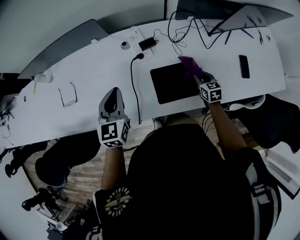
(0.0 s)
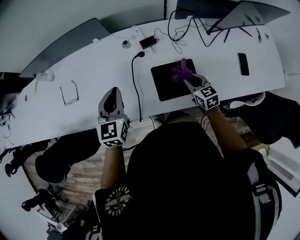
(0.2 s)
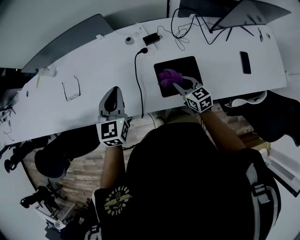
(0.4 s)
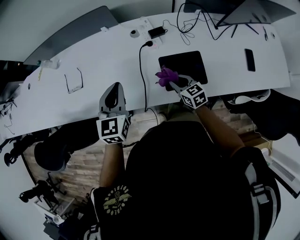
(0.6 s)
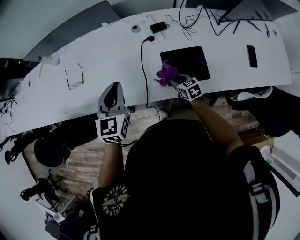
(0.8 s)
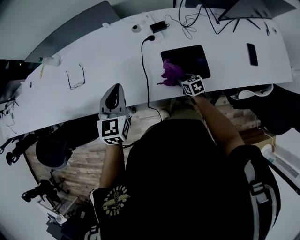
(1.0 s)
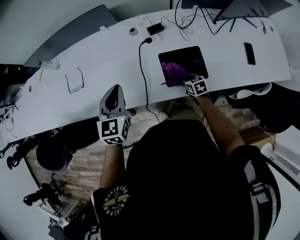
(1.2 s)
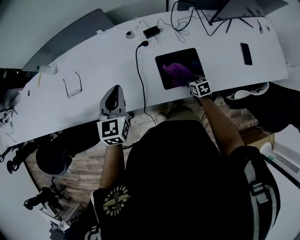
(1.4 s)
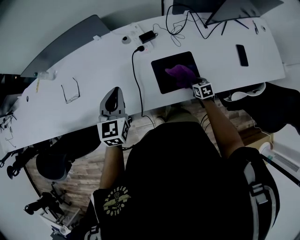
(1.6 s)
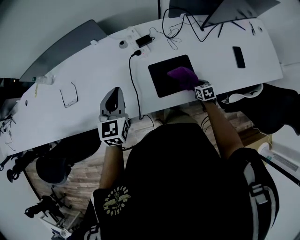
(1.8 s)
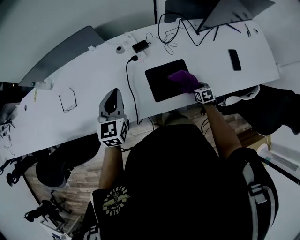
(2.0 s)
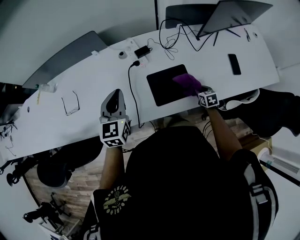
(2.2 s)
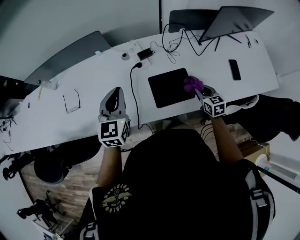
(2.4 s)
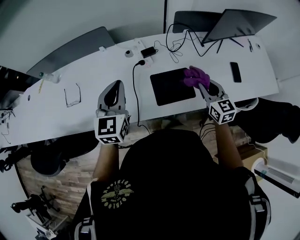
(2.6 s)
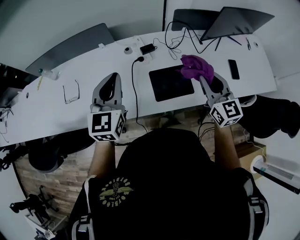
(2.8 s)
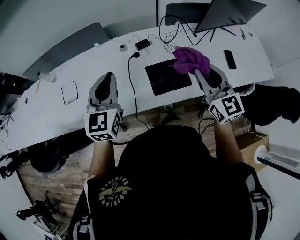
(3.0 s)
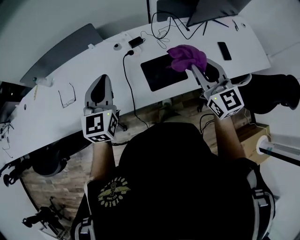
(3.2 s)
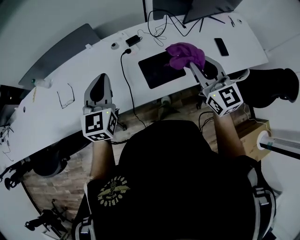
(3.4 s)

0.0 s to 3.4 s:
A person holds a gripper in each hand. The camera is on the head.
0.0 to 1.6 s: The left gripper shifts roughly 5 cm backward, while the right gripper shifts roughly 10 cm downward and backward, and travels to the left and back again, about 20 cm each way.
1.6 to 3.4 s: The right gripper moves upward, some 40 cm, and tilts its fingers some 50 degrees upward. Meanwhile the left gripper shifts some 10 cm upward.

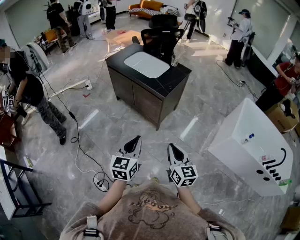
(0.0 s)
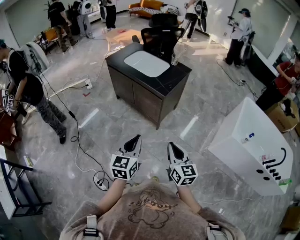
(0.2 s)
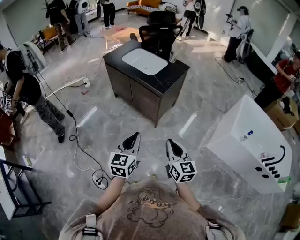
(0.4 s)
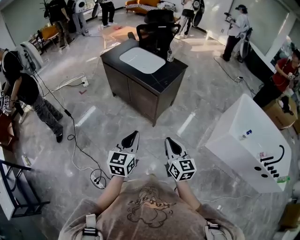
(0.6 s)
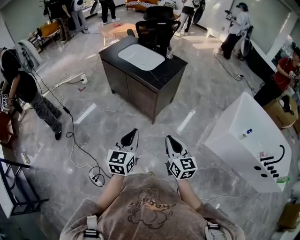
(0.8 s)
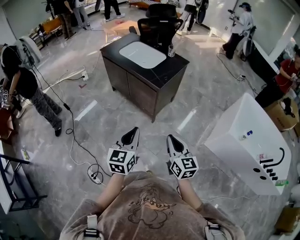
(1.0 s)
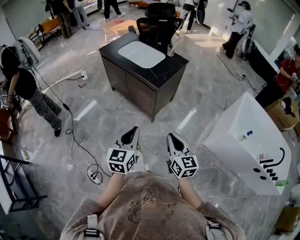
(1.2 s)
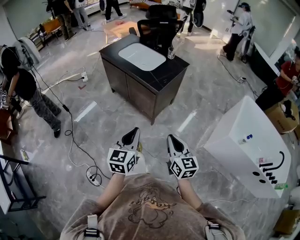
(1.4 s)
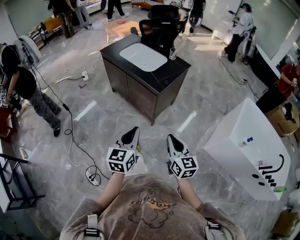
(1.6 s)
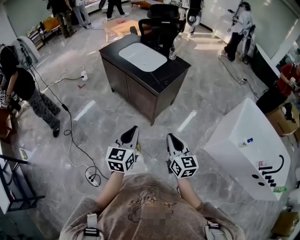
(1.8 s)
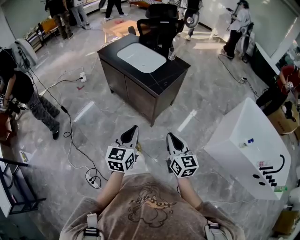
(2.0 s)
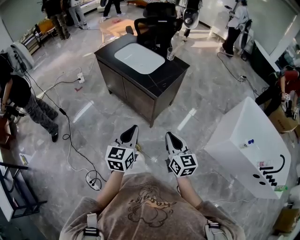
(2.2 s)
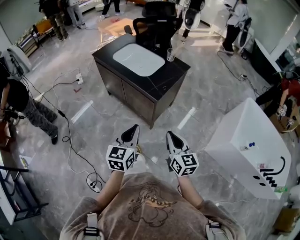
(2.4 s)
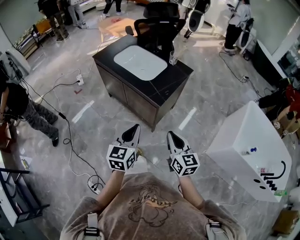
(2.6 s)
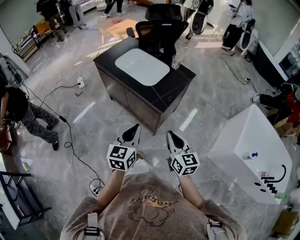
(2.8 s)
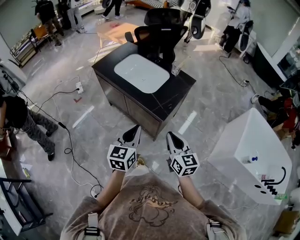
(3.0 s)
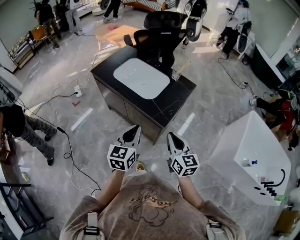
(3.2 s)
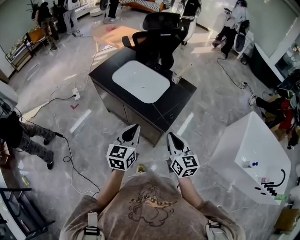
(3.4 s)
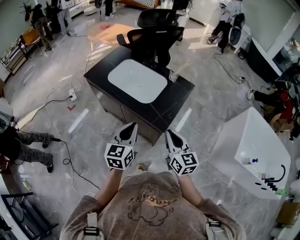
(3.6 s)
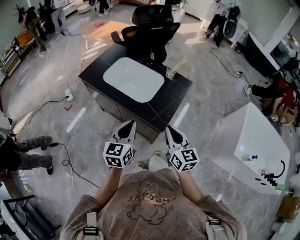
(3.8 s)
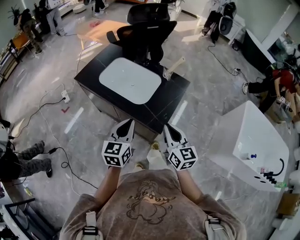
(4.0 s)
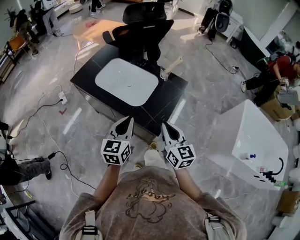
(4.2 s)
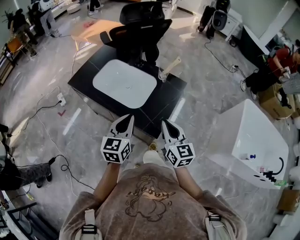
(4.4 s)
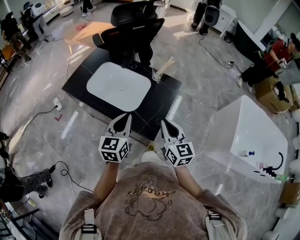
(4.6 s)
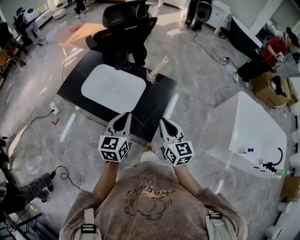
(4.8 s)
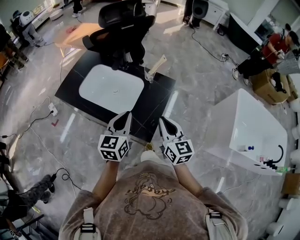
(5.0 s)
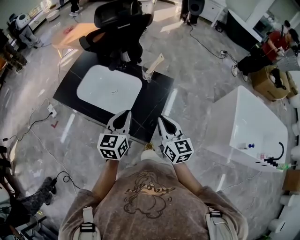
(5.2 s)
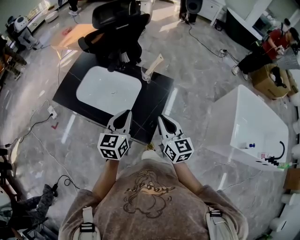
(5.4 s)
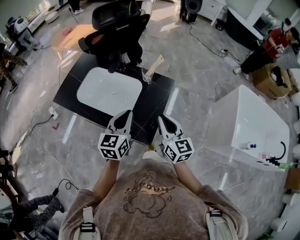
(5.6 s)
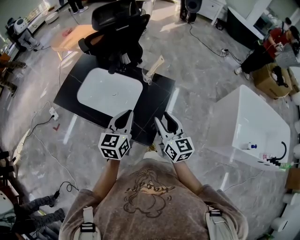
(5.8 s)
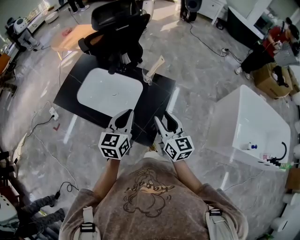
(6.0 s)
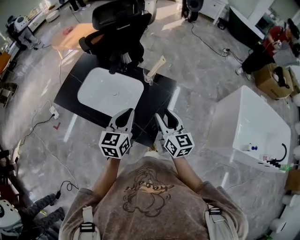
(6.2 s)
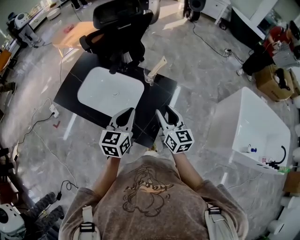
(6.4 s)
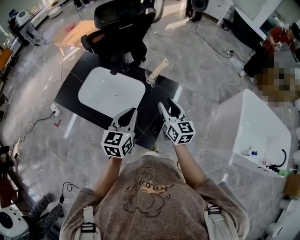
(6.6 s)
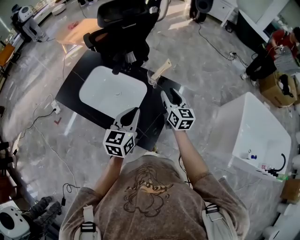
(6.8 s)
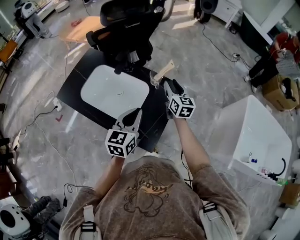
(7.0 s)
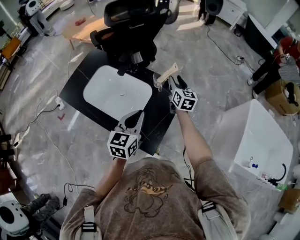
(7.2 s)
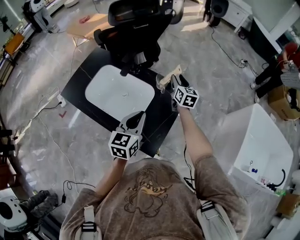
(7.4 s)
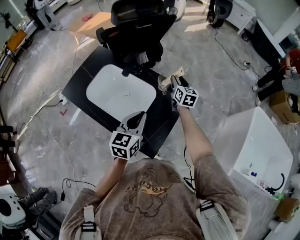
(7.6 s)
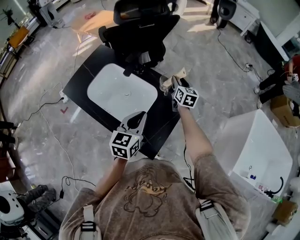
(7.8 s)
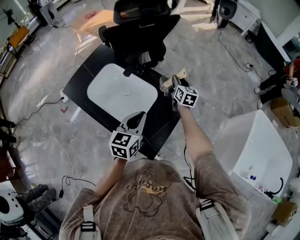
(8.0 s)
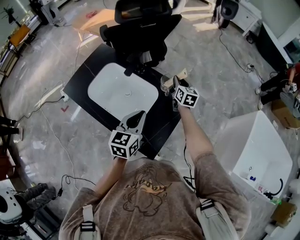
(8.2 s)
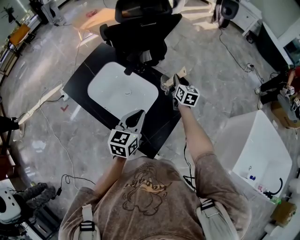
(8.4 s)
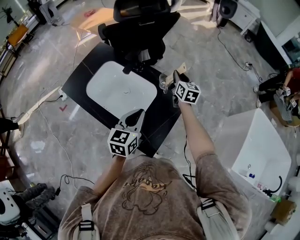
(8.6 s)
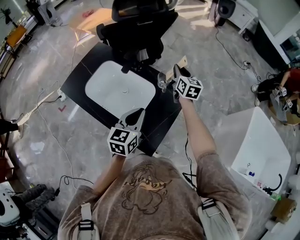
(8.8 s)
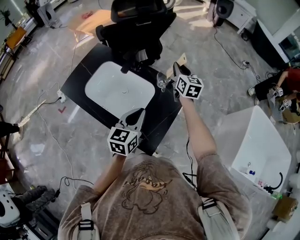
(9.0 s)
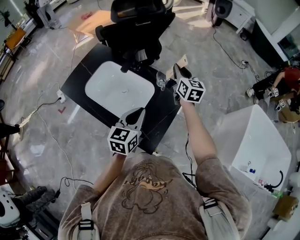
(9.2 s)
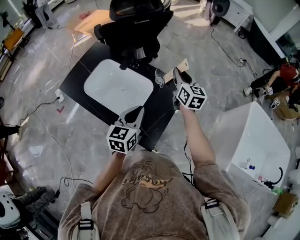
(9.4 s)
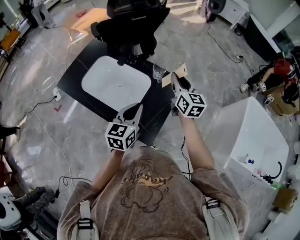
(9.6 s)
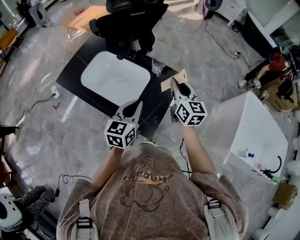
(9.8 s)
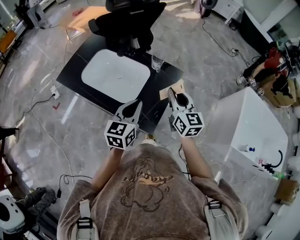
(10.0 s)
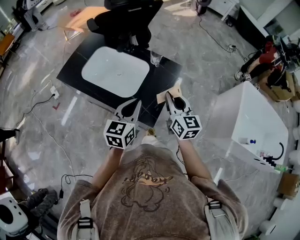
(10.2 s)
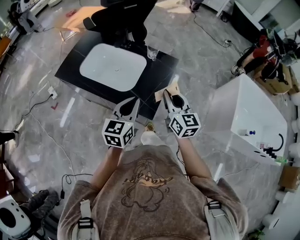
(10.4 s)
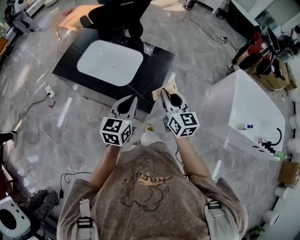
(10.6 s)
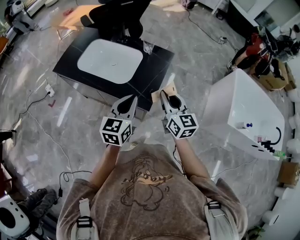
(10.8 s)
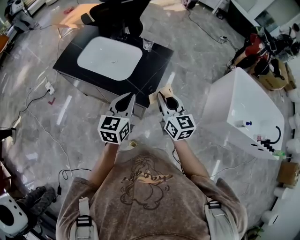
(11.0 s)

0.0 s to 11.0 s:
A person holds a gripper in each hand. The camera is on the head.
0.0 to 1.6 s: The right gripper shifts about 10 cm forward and to the right. The left gripper travels forward by roughly 5 cm.
1.6 to 3.2 s: Both grippers travel together forward, approximately 30 cm.
3.2 to 4.8 s: The two grippers go about 20 cm forward.
4.8 to 6.2 s: Both grippers move forward, approximately 5 cm. The right gripper opens up.
6.2 to 7.8 s: The right gripper moves forward, approximately 30 cm; the left gripper shifts some 5 cm forward.
7.8 to 9.4 s: The right gripper is displaced upward and backward by about 15 cm, and closes its fingers.
9.4 to 11.0 s: The right gripper is displaced backward by roughly 35 cm. Meanwhile the left gripper travels backward by about 20 cm.

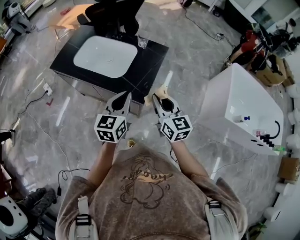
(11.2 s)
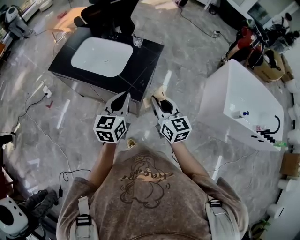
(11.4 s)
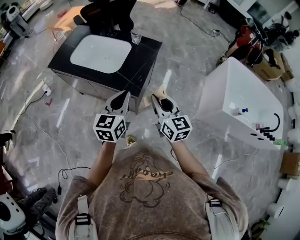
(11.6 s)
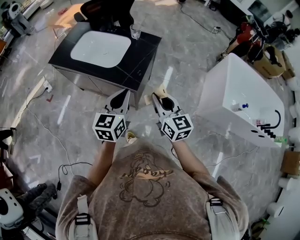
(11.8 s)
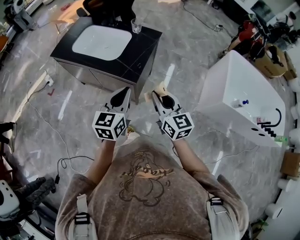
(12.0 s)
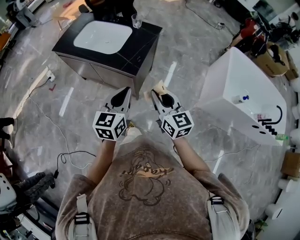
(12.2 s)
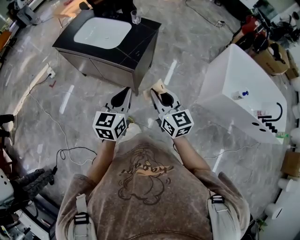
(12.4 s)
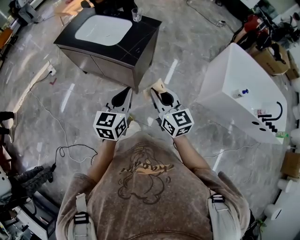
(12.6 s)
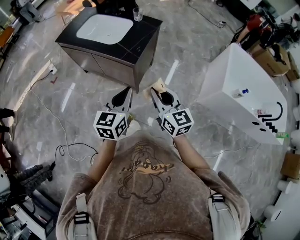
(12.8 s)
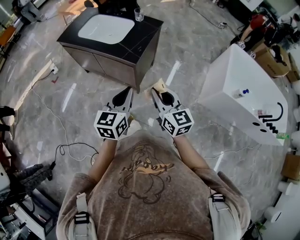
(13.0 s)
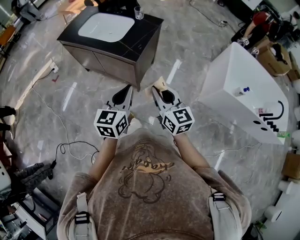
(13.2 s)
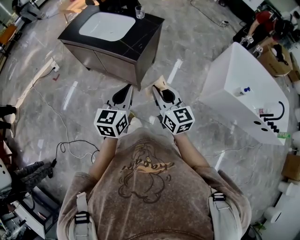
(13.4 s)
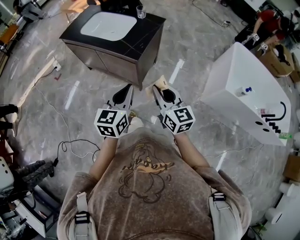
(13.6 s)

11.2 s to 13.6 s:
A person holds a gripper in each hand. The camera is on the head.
11.2 to 12.4 s: The grippers both shift backward by roughly 20 cm.
12.4 to 13.6 s: There are only small adjustments of the grippers.

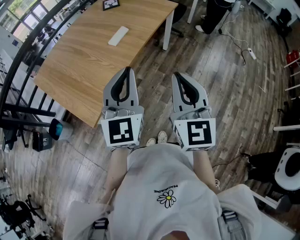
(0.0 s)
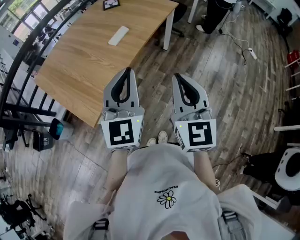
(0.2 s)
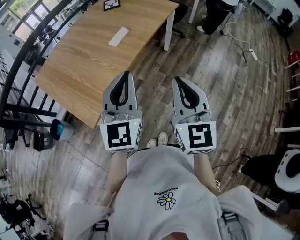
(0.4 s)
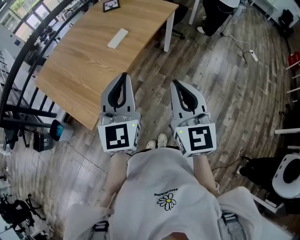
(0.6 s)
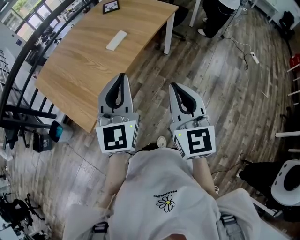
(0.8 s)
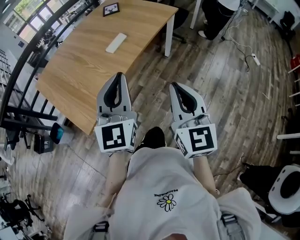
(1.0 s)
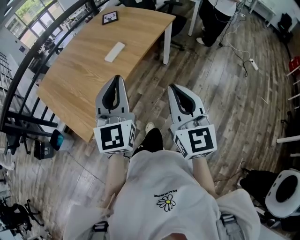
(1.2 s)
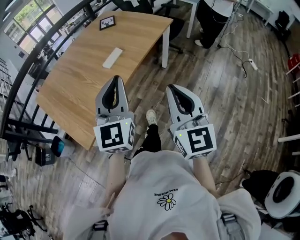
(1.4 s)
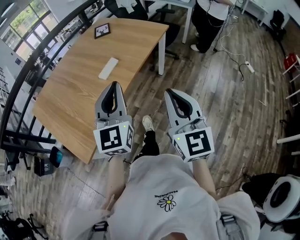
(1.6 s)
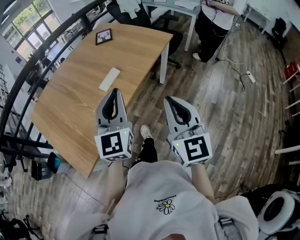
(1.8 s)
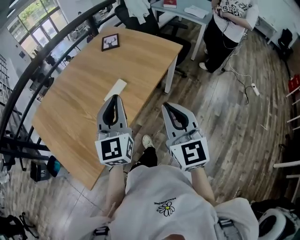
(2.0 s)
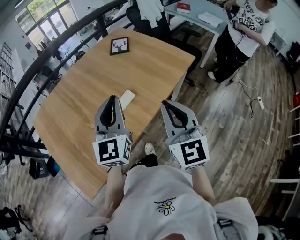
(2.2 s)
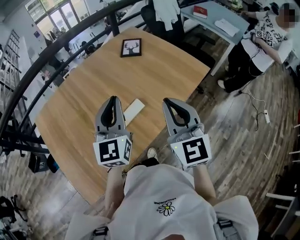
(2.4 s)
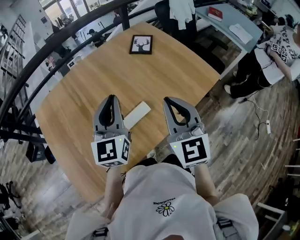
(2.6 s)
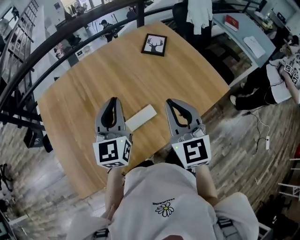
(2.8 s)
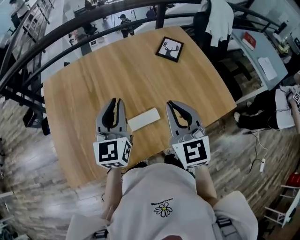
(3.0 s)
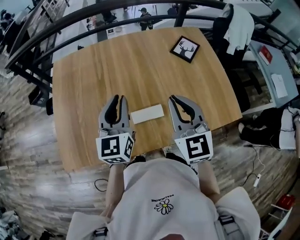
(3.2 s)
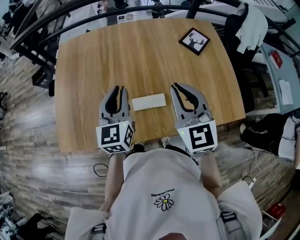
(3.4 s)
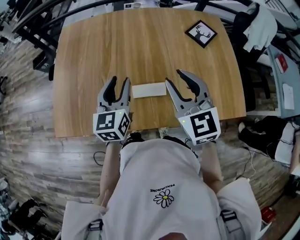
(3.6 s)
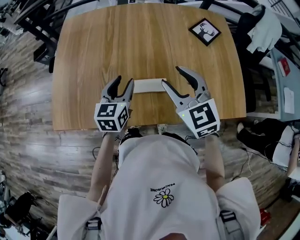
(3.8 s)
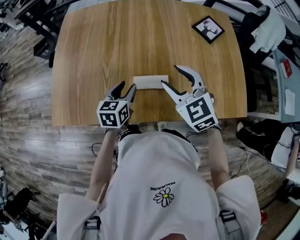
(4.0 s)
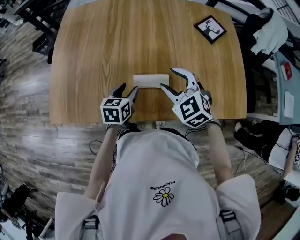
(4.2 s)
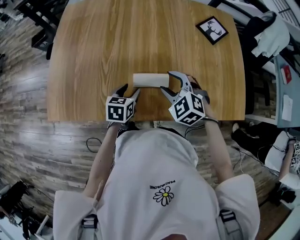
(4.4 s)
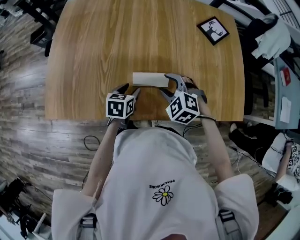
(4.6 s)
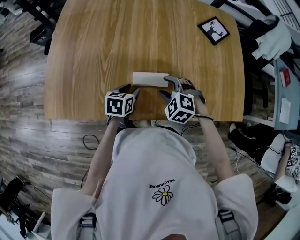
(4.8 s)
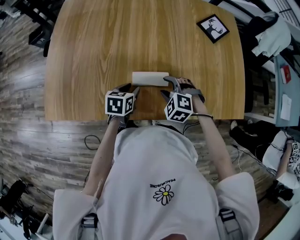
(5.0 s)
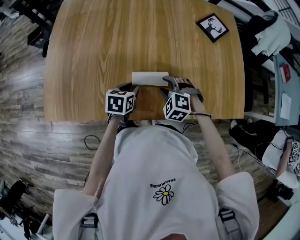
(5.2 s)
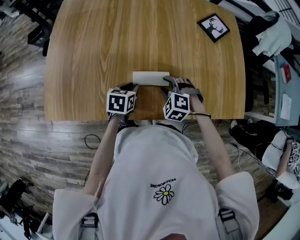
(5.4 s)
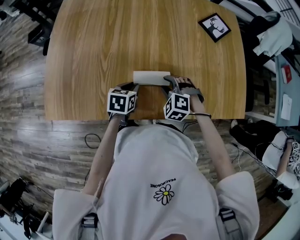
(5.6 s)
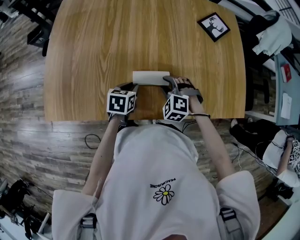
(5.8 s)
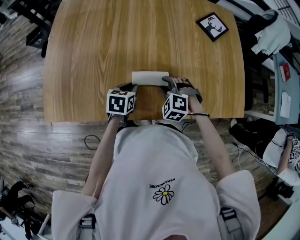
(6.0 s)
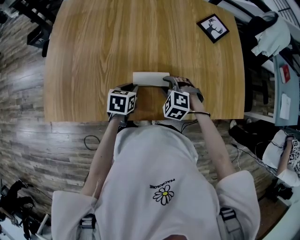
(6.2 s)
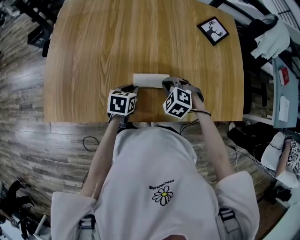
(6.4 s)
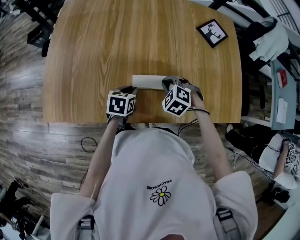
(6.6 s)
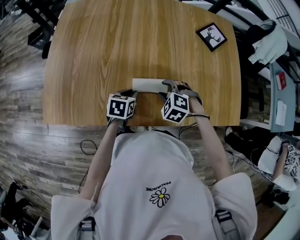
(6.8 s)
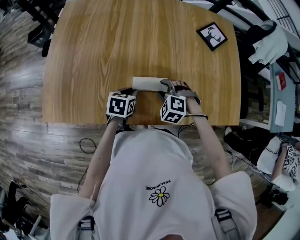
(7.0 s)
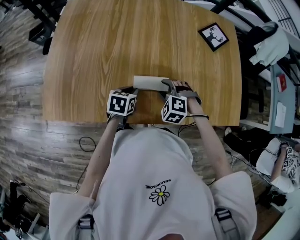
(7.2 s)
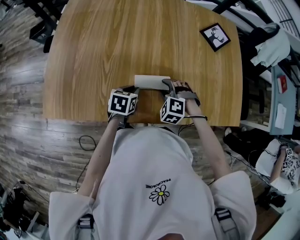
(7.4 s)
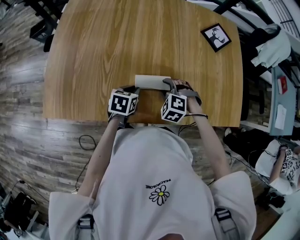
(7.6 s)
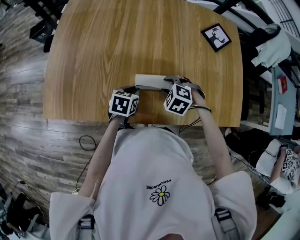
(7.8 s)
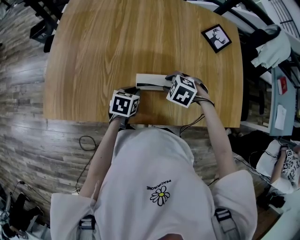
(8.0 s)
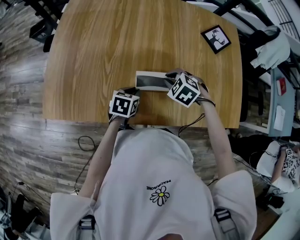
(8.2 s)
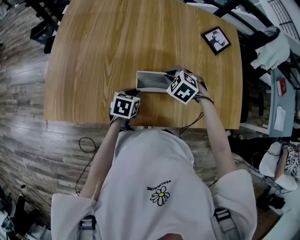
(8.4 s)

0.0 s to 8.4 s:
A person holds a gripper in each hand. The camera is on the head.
0.0 to 1.4 s: The right gripper heads forward and to the right, covering roughly 5 cm. The left gripper shifts approximately 5 cm forward.
1.4 to 2.8 s: The two grippers travel together, roughly 40 cm. The left gripper changes its angle by some 30 degrees. Meanwhile the right gripper changes its angle by some 30 degrees.
2.8 to 4.2 s: Both grippers travel together downward, about 20 cm. The right gripper angles its fingers downward, by approximately 30 degrees, and opens, while the left gripper angles its fingers downward, by roughly 40 degrees, and opens up.
4.2 to 5.6 s: The left gripper shifts roughly 5 cm downward, and closes its fingers. Meanwhile the right gripper goes about 15 cm downward, and swivels approximately 30 degrees.
5.6 to 7.0 s: The right gripper closes, then opens again.
7.0 to 8.4 s: The right gripper moves about 5 cm, and closes its fingers.
